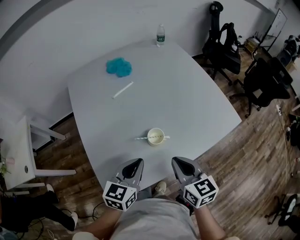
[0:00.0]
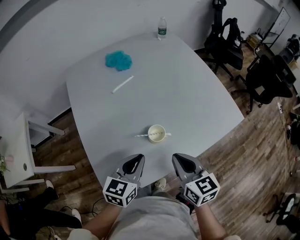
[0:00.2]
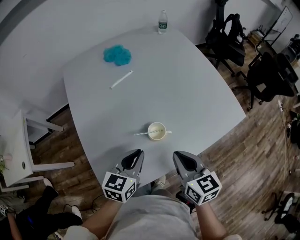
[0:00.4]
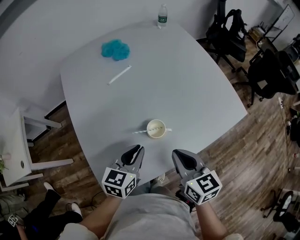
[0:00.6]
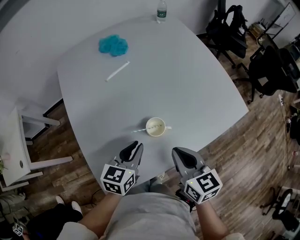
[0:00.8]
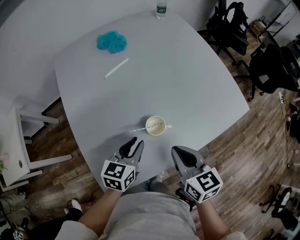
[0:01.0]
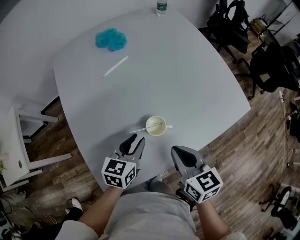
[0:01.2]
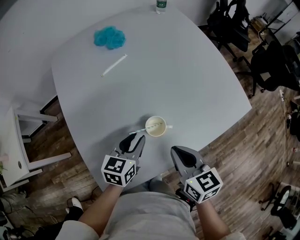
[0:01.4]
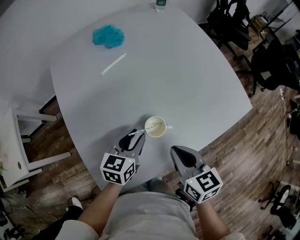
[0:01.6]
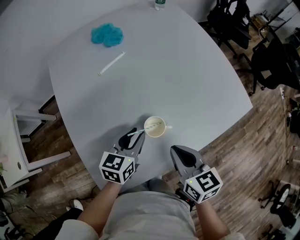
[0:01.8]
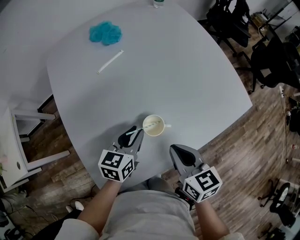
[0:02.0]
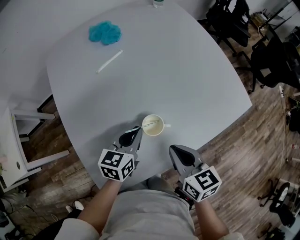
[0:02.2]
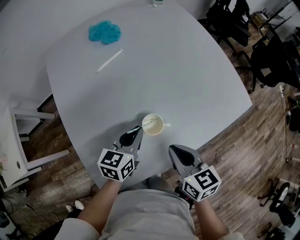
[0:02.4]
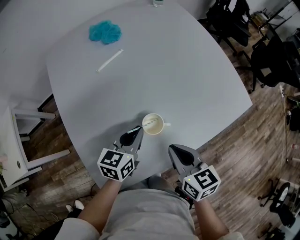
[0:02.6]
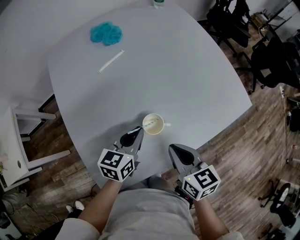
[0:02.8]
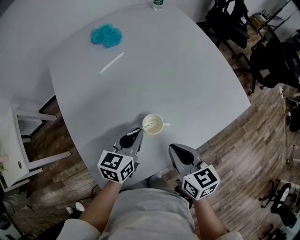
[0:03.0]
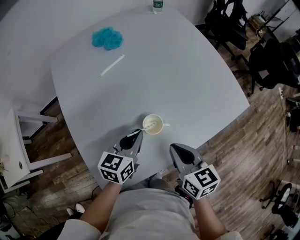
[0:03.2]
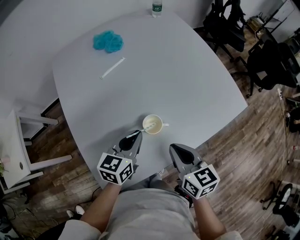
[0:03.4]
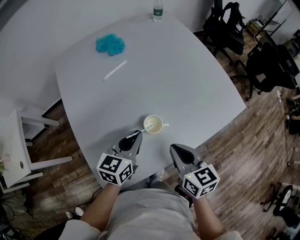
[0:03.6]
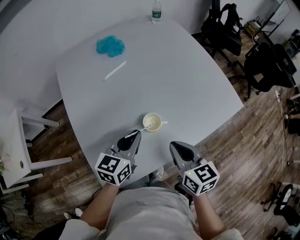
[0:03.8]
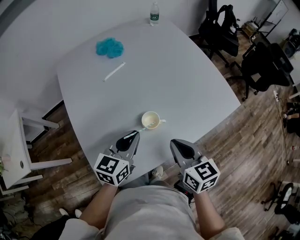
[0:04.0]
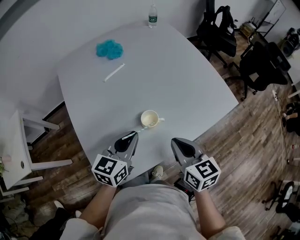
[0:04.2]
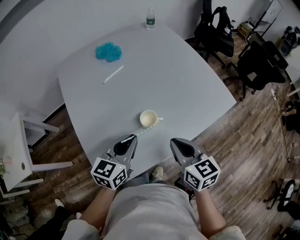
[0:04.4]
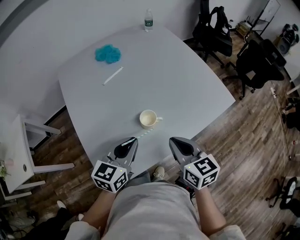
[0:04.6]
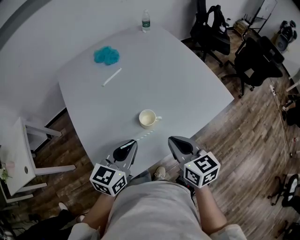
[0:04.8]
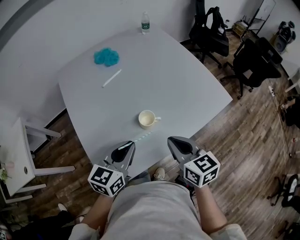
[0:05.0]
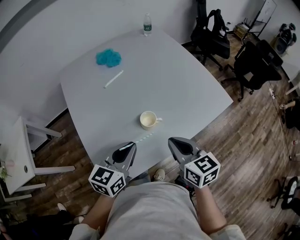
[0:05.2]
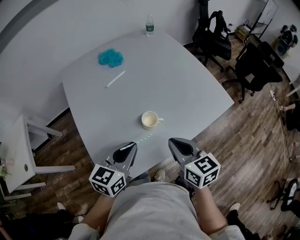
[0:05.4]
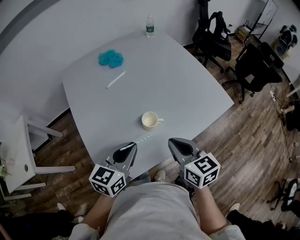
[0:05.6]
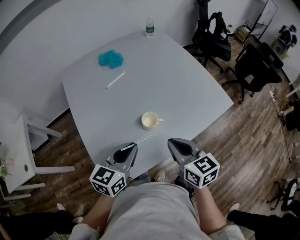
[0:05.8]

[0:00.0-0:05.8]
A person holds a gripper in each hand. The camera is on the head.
0:00.0 to 0:01.4: The left gripper travels downward and forward by approximately 15 cm, and opens; the right gripper heads downward, covering roughly 5 cm.
0:01.4 to 0:02.8: The left gripper closes its fingers.
0:02.8 to 0:04.4: The left gripper moves upward and backward, some 15 cm; the right gripper travels upward by roughly 5 cm.
0:04.4 to 0:05.8: The left gripper changes place by some 5 cm.

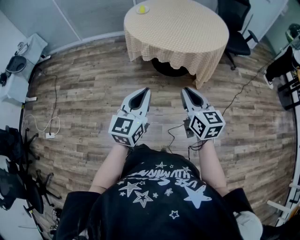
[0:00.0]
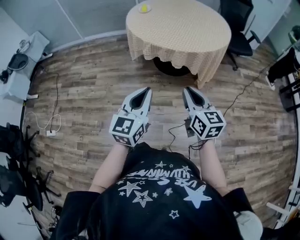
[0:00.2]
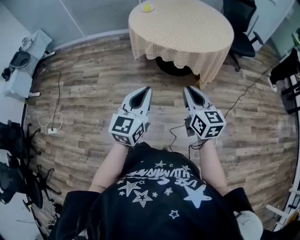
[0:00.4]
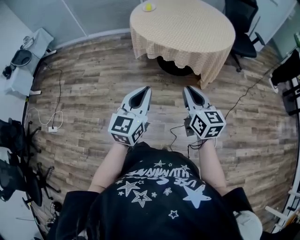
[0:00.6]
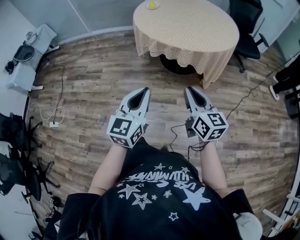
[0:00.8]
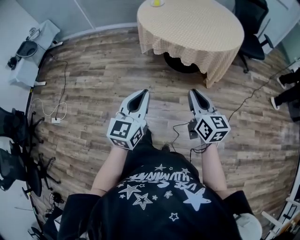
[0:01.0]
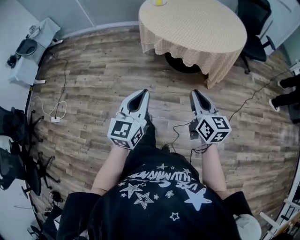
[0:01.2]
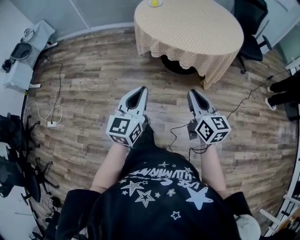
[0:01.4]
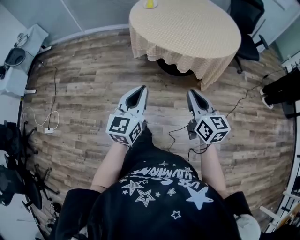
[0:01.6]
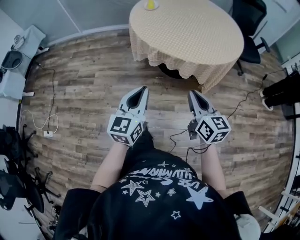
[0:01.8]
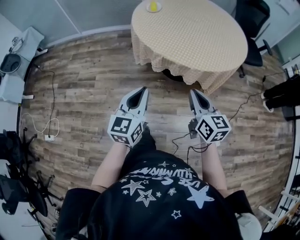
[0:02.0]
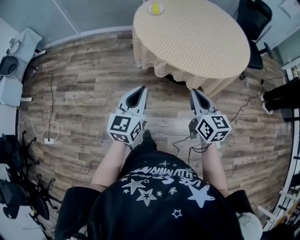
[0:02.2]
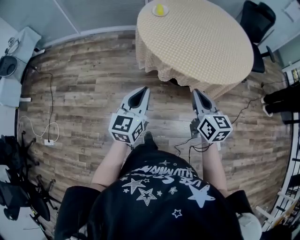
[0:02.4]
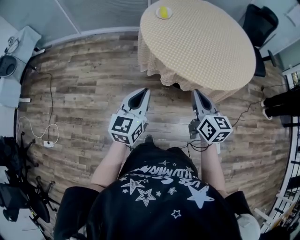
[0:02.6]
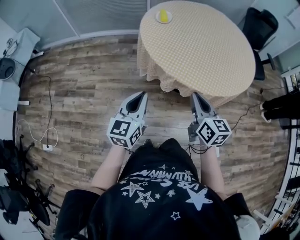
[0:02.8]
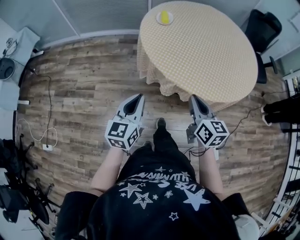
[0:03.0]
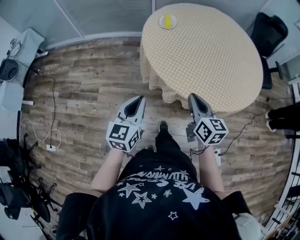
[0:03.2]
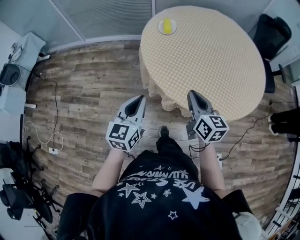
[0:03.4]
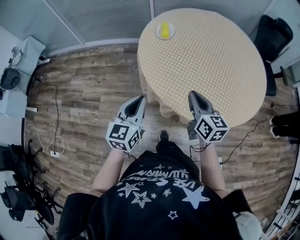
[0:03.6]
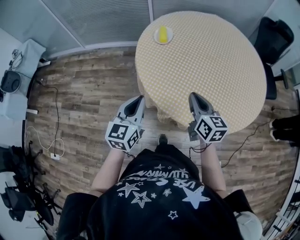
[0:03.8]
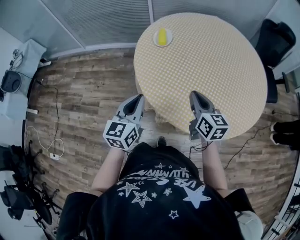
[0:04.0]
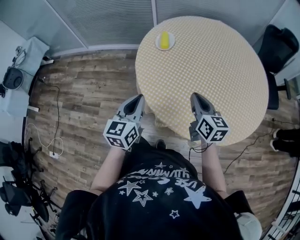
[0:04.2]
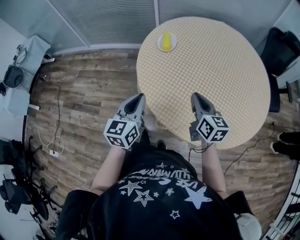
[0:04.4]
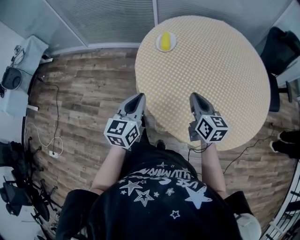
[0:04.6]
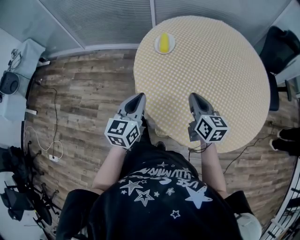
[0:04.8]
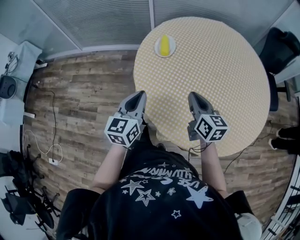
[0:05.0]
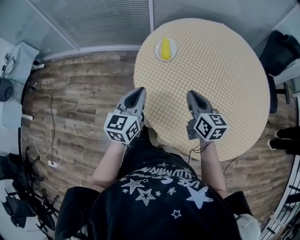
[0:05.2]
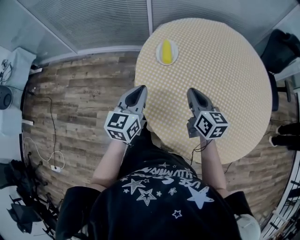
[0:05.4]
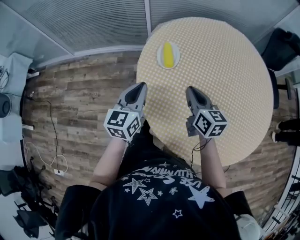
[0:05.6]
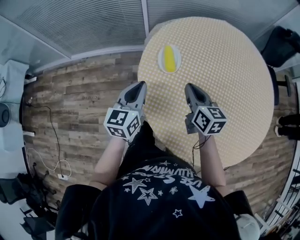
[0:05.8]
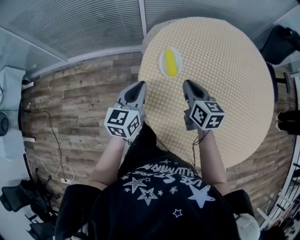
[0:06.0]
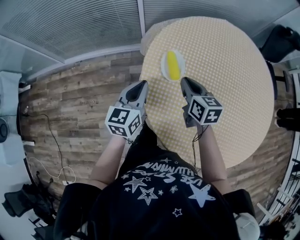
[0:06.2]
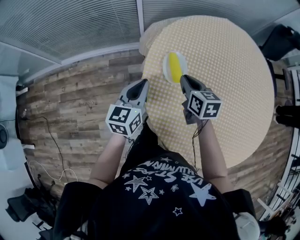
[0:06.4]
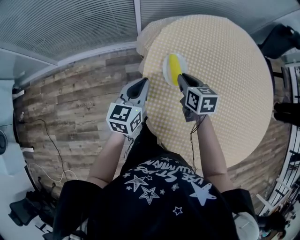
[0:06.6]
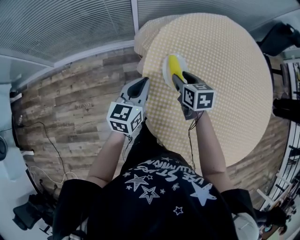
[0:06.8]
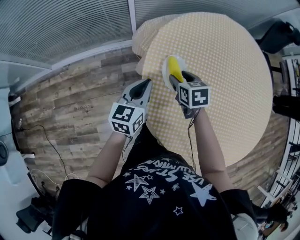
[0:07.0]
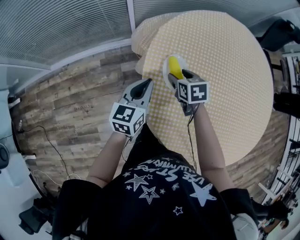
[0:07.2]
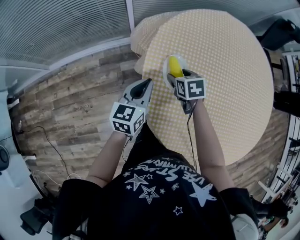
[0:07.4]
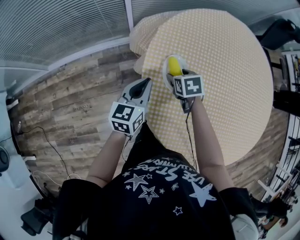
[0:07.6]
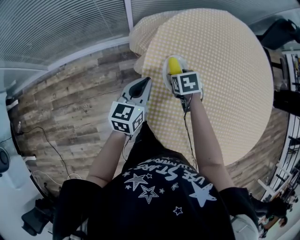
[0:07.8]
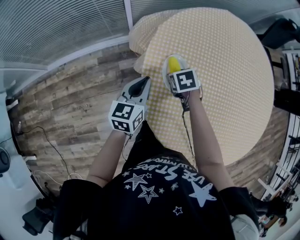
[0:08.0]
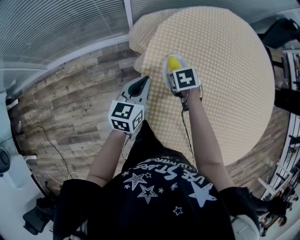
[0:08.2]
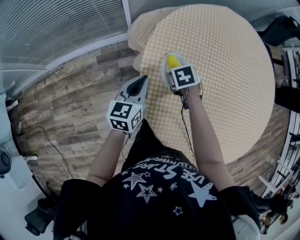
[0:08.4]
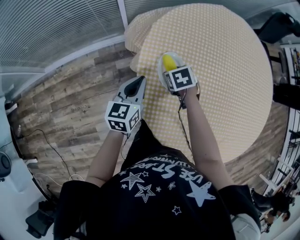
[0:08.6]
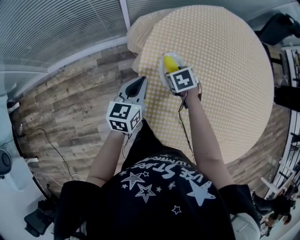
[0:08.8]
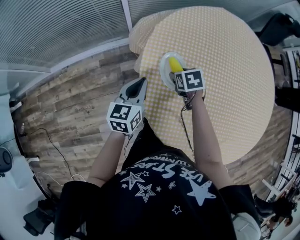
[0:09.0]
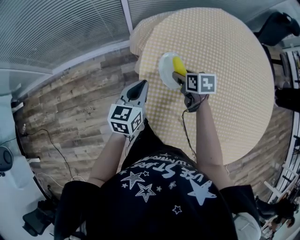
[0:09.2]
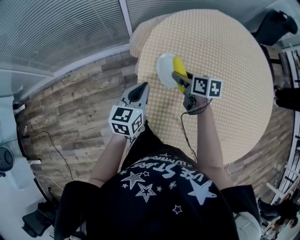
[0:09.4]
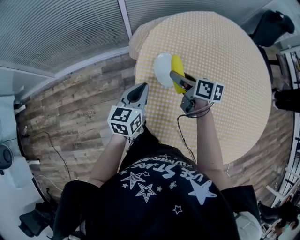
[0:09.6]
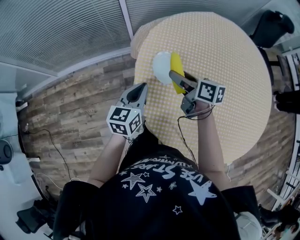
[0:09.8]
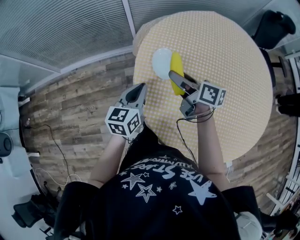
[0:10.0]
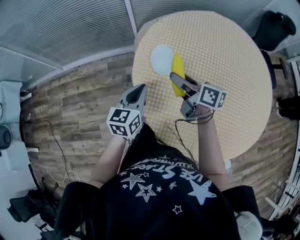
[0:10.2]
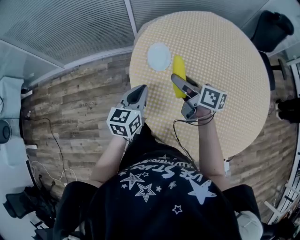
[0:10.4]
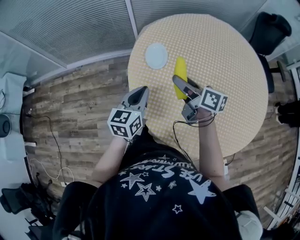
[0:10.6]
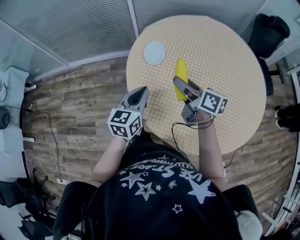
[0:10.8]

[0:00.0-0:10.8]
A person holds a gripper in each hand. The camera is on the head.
0:00.0 to 0:01.6: Both grippers move forward, approximately 10 cm.
0:01.6 to 0:03.0: The right gripper is displaced forward by about 30 cm. The left gripper goes about 30 cm forward and to the left.
0:03.0 to 0:04.6: Both grippers move forward, about 25 cm.
0:04.6 to 0:06.2: The left gripper travels forward by some 30 cm. Meanwhile the right gripper is displaced forward and to the left by roughly 30 cm.
0:06.2 to 0:07.8: The left gripper shifts approximately 15 cm forward and downward. The right gripper goes some 20 cm downward and forward, angles its fingers downward, by roughly 40 degrees, and opens up.
0:07.8 to 0:09.2: The right gripper shifts by about 5 cm, and turns by about 20 degrees.
0:09.2 to 0:10.8: The right gripper travels backward and upward by roughly 25 cm, and tilts its fingers about 40 degrees upward. Meanwhile the left gripper shifts about 25 cm backward and to the right.

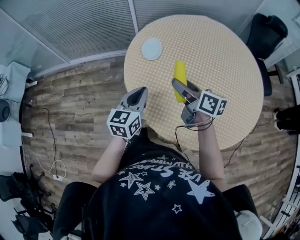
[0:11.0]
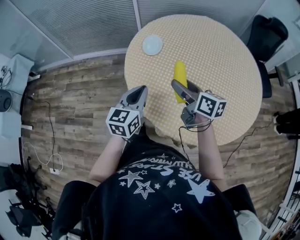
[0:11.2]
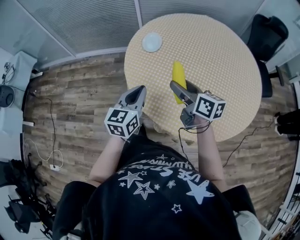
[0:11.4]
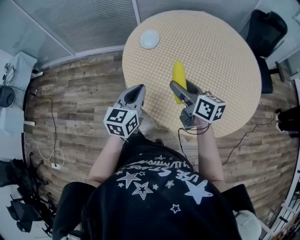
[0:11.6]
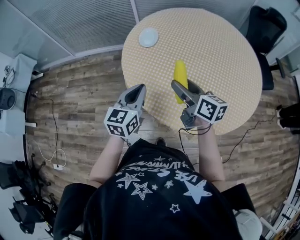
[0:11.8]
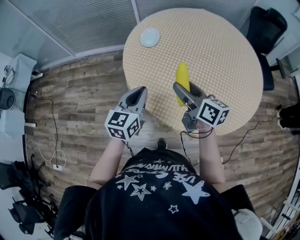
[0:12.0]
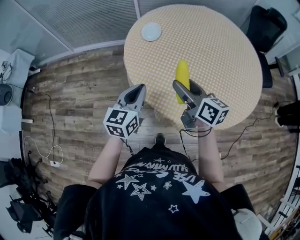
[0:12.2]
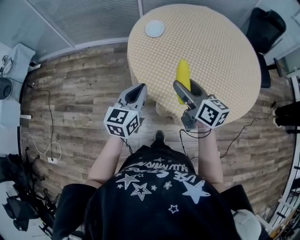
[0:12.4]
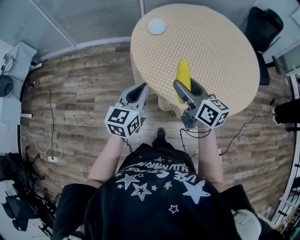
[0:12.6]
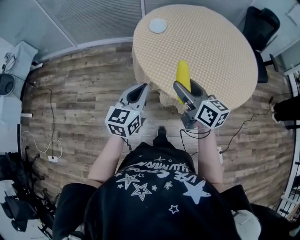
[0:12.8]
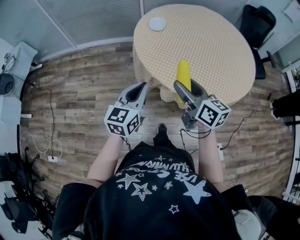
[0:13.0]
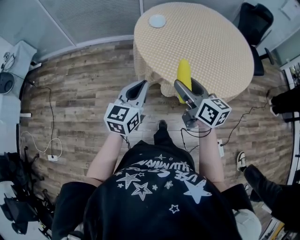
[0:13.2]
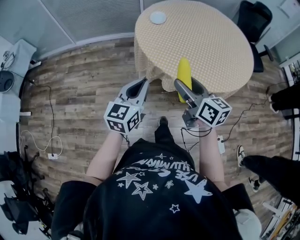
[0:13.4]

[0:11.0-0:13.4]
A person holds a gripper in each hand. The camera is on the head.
0:11.0 to 0:12.2: Both grippers move backward, some 10 cm.
0:12.2 to 0:13.4: Both grippers travel together backward, roughly 20 cm.

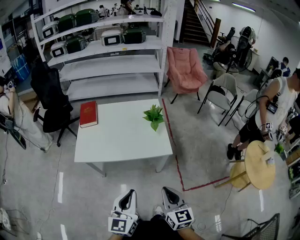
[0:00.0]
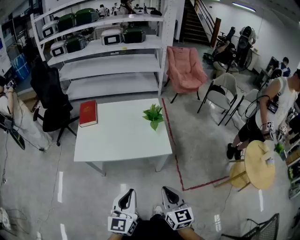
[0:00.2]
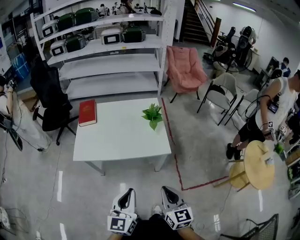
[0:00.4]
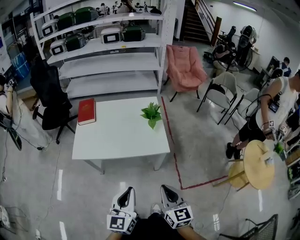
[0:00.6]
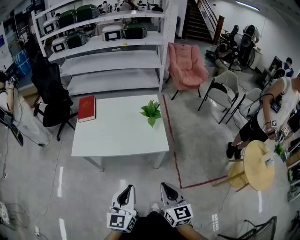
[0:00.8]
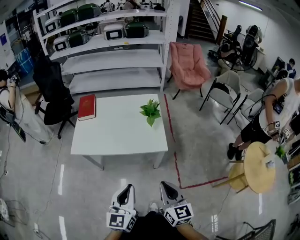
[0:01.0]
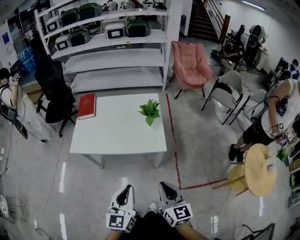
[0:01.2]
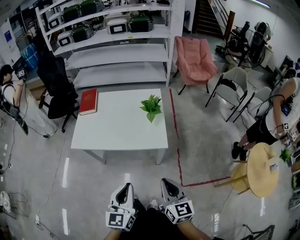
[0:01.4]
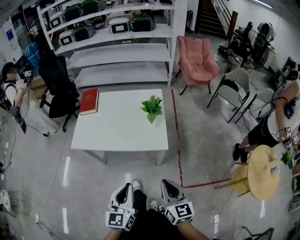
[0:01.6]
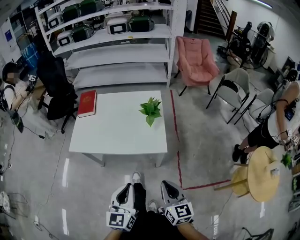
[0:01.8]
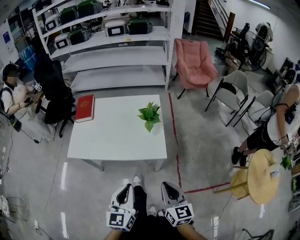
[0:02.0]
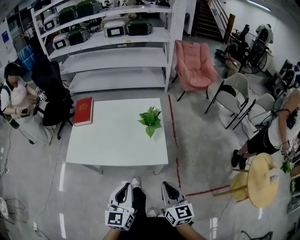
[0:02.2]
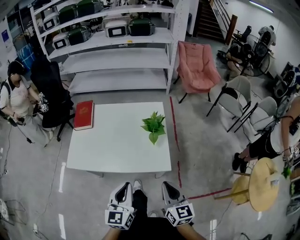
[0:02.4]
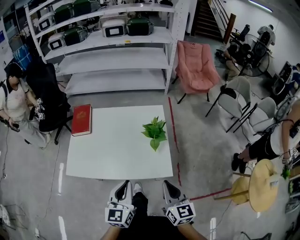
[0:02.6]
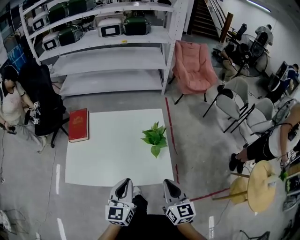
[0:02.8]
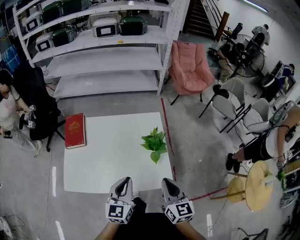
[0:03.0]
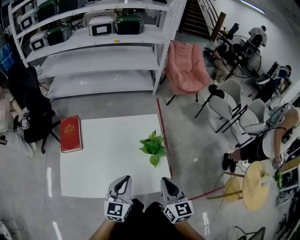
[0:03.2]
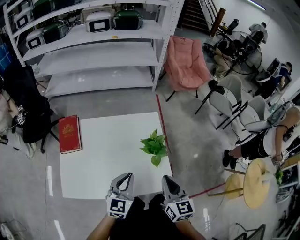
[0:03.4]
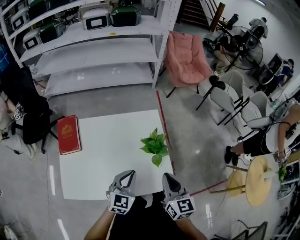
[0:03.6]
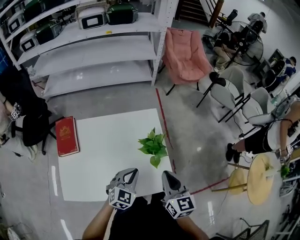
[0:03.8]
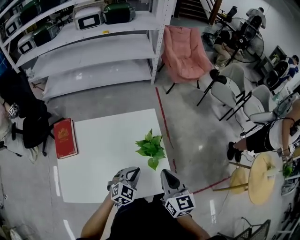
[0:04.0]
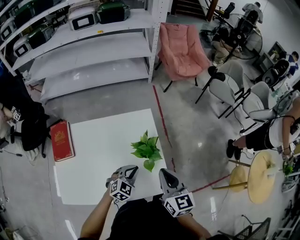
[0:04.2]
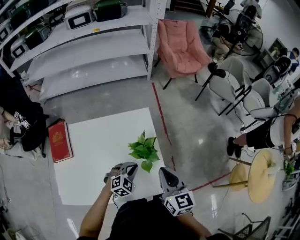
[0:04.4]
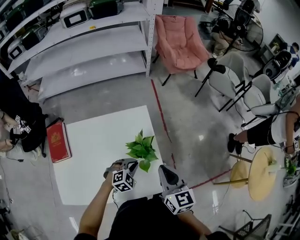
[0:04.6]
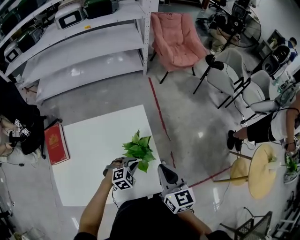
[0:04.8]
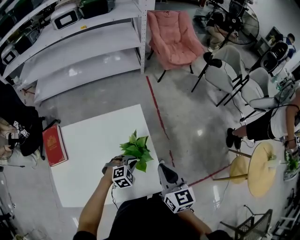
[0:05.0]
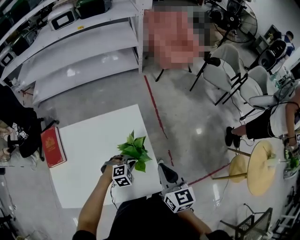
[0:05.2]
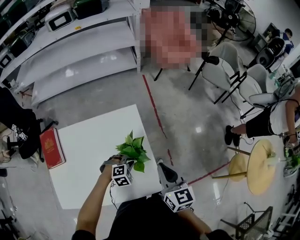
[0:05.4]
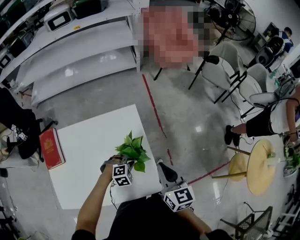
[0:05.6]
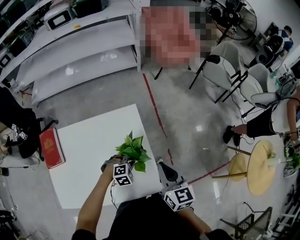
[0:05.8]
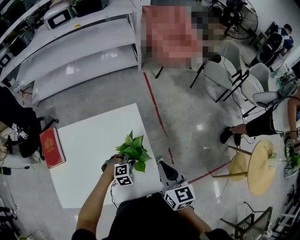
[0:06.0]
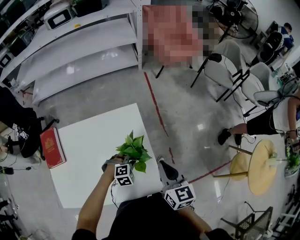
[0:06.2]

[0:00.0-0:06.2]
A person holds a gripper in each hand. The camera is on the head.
0:00.0 to 0:01.6: Both grippers travel together to the right, some 10 cm.
0:01.6 to 0:03.2: Both grippers travel together forward, about 35 cm.
0:03.2 to 0:04.6: The left gripper moves downward, forward and to the right, roughly 30 cm, and points its fingers approximately 40 degrees further downward, while the right gripper travels forward by approximately 15 cm.
0:04.6 to 0:06.2: The right gripper is displaced forward by roughly 5 cm; the left gripper changes place by some 5 cm, and turns by about 20 degrees.
